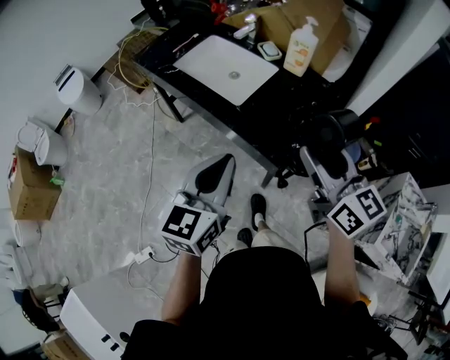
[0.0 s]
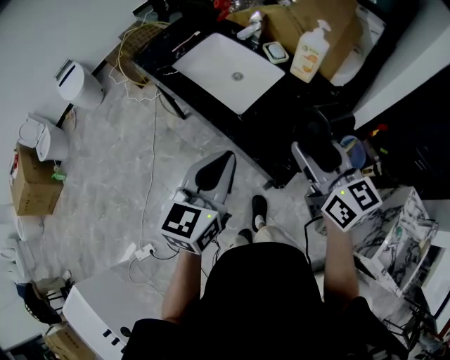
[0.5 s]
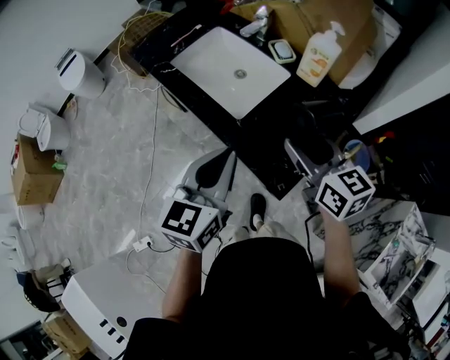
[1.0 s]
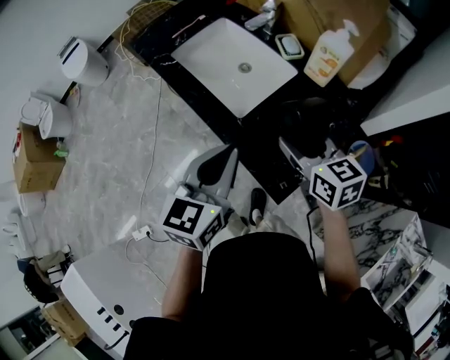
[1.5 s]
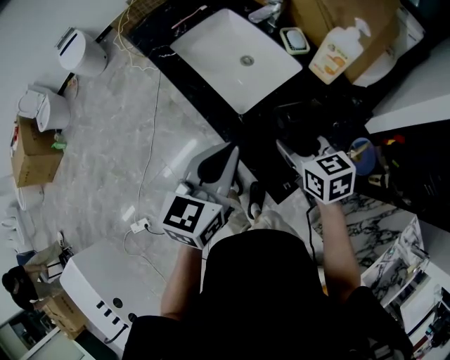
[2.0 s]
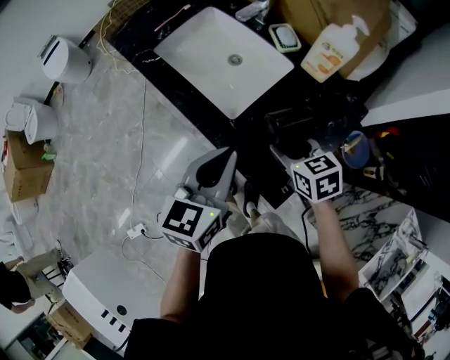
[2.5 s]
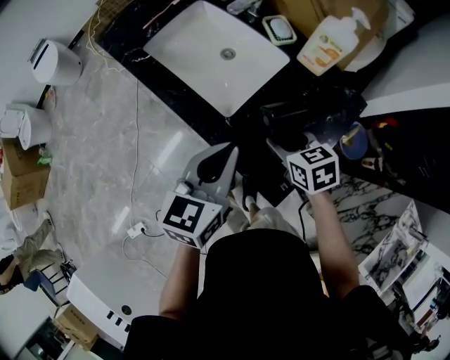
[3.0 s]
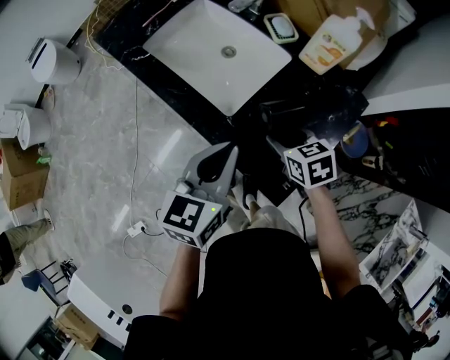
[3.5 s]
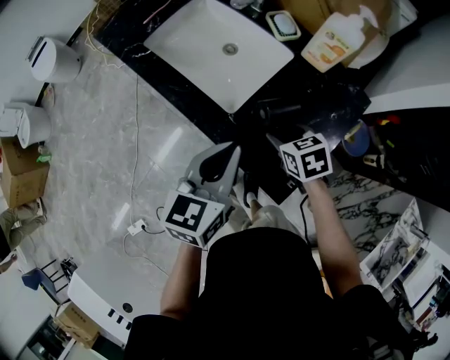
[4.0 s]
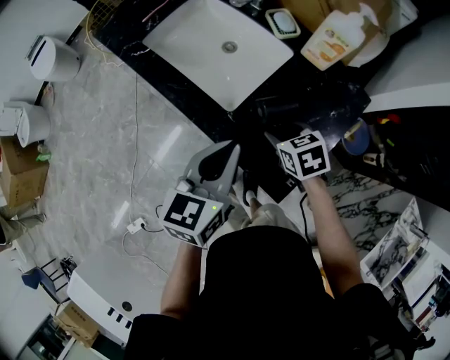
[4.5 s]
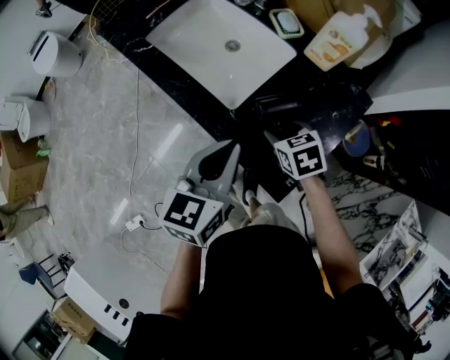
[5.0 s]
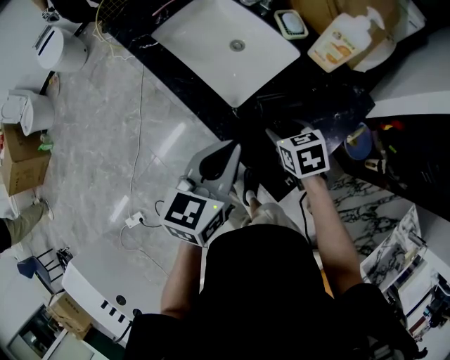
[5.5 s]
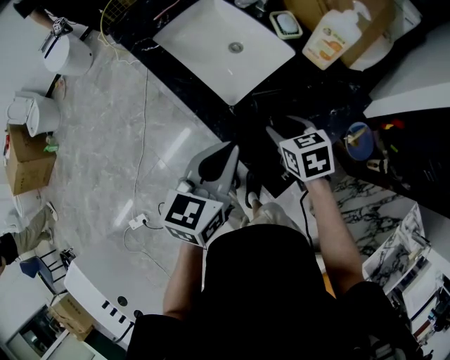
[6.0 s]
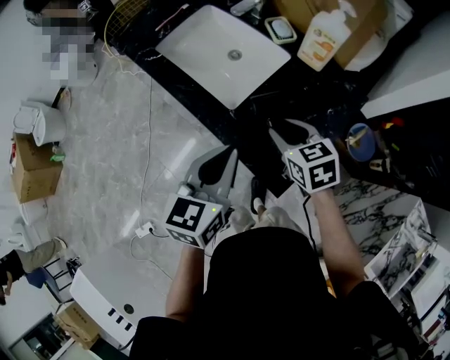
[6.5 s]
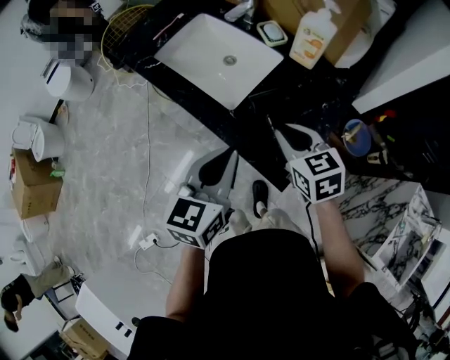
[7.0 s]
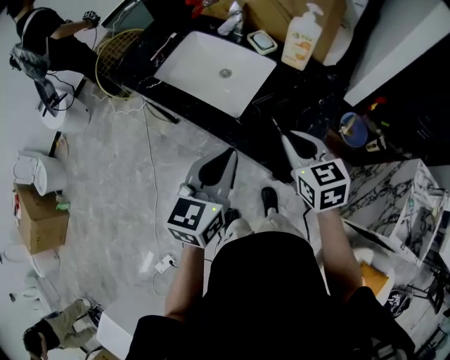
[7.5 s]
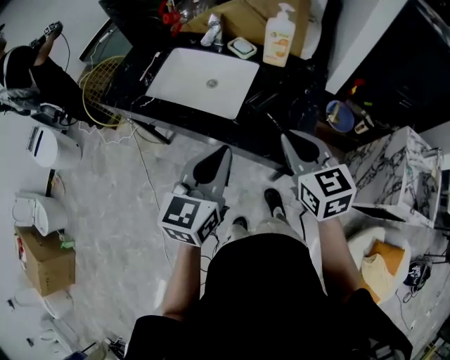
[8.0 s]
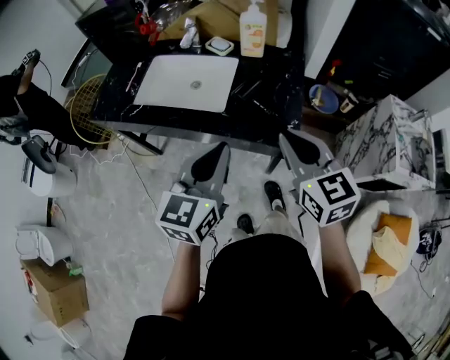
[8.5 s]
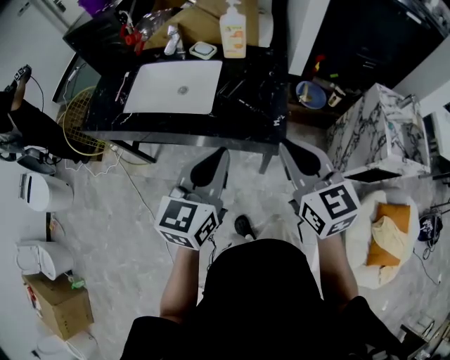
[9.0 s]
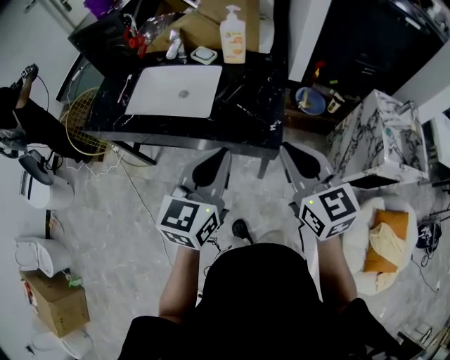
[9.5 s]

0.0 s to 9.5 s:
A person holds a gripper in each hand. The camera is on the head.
0.0 to 2.0 s: The left gripper shifts roughly 20 cm forward, while the right gripper is displaced forward and downward by roughly 30 cm, and tilts its fingers some 30 degrees downward.
2.0 to 4.0 s: The right gripper shifts roughly 10 cm downward. The left gripper is displaced downward by some 5 cm.
4.0 to 5.5 s: Both grippers stay about where they are.
5.5 to 7.5 s: The right gripper goes about 20 cm upward and backward, swivels approximately 30 degrees, and closes its fingers, while the left gripper travels upward and backward by approximately 10 cm.
7.5 to 9.5 s: The left gripper travels backward and upward by some 10 cm, and changes its angle by about 20 degrees; the right gripper is displaced backward and upward by roughly 20 cm, and swivels approximately 30 degrees.

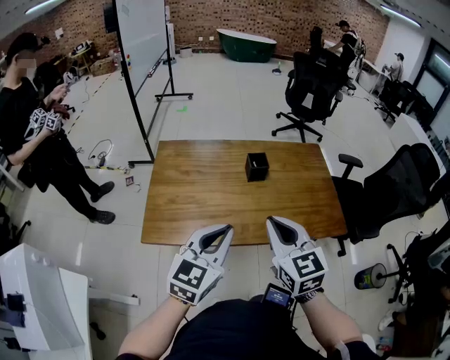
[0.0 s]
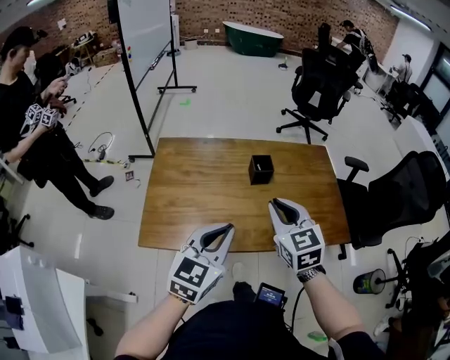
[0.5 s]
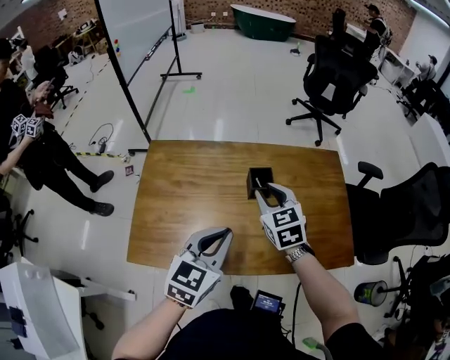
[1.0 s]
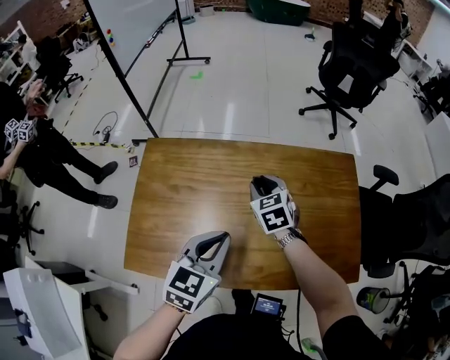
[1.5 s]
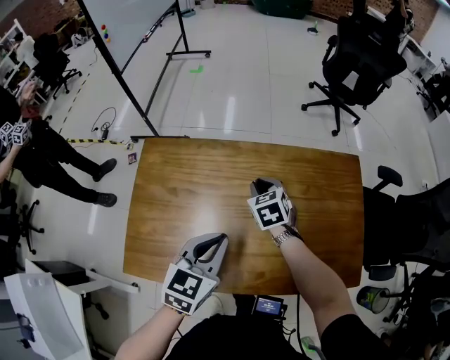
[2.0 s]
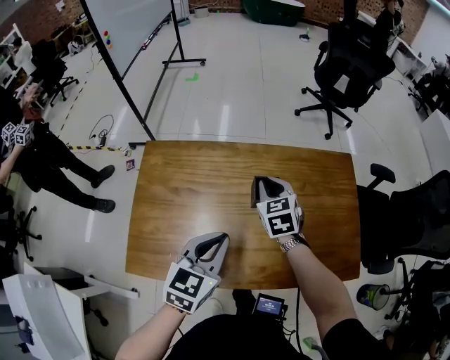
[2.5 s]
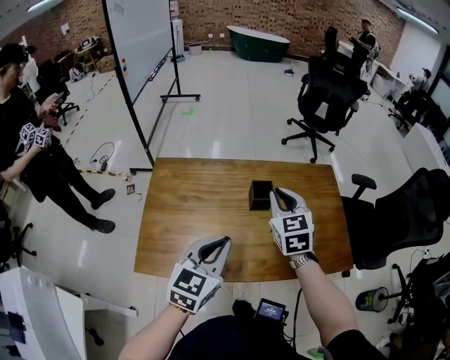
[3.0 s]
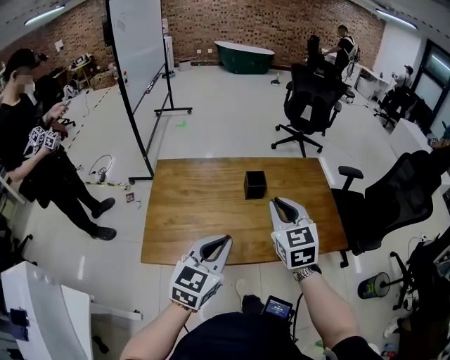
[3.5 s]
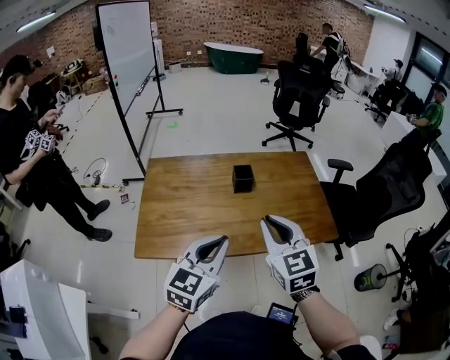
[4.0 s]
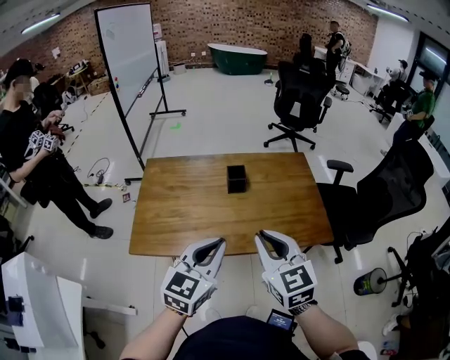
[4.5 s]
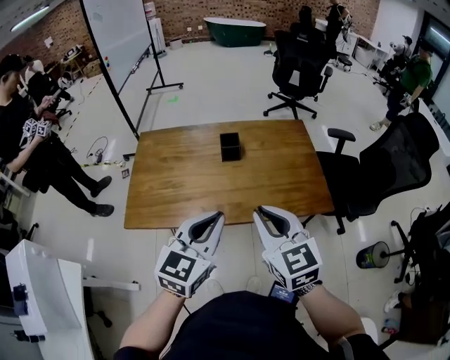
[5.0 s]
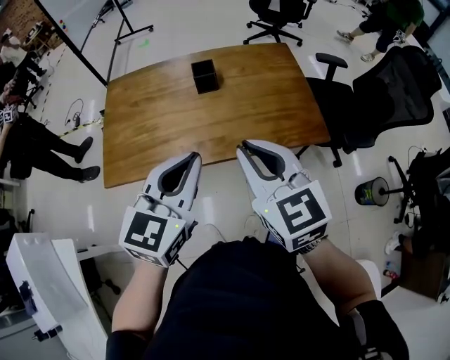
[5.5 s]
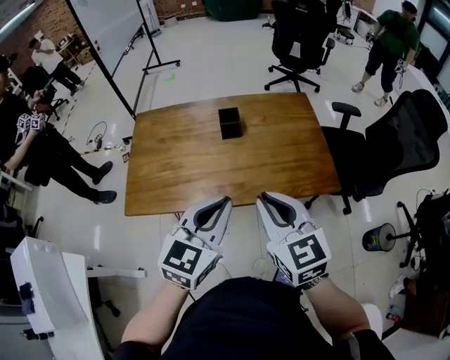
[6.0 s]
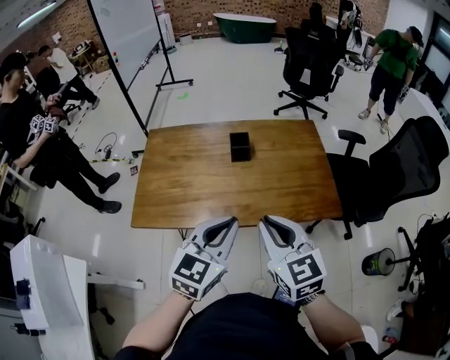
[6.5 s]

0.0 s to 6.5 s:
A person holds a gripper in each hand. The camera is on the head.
0.0 to 2.0 s: The left gripper is displaced forward and downward by about 30 cm, and turns by some 20 degrees. Meanwhile the right gripper goes approximately 50 cm forward and downward, and tips its fingers downward by roughly 30 degrees.
2.0 to 4.5 s: The right gripper travels backward and upward by some 50 cm, and angles its fingers upward, by approximately 30 degrees, while the left gripper travels backward and upward by approximately 30 cm, and swivels roughly 20 degrees.
4.5 to 6.5 s: The left gripper is displaced to the right by approximately 5 cm.

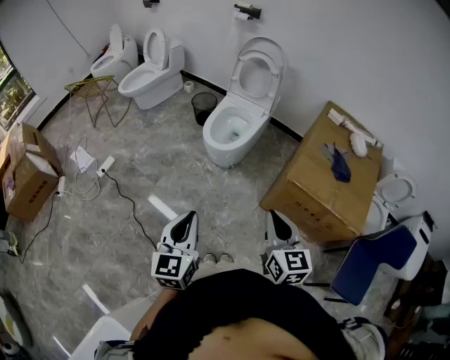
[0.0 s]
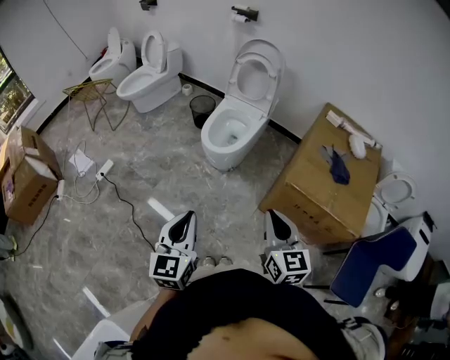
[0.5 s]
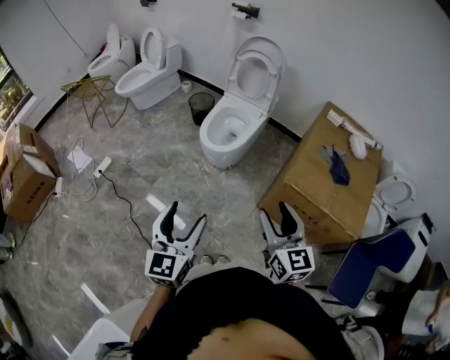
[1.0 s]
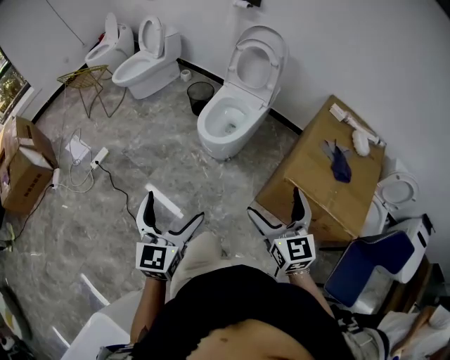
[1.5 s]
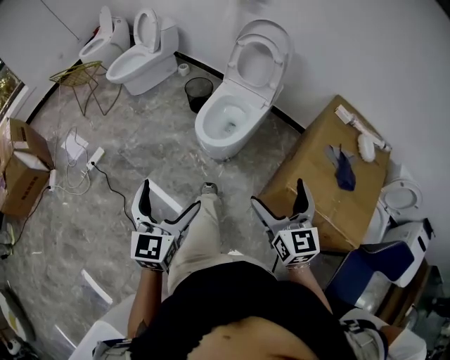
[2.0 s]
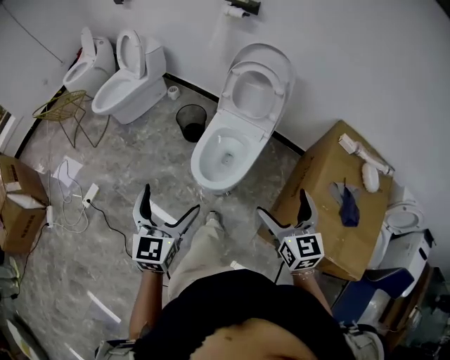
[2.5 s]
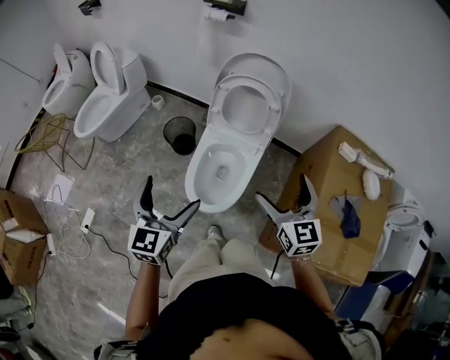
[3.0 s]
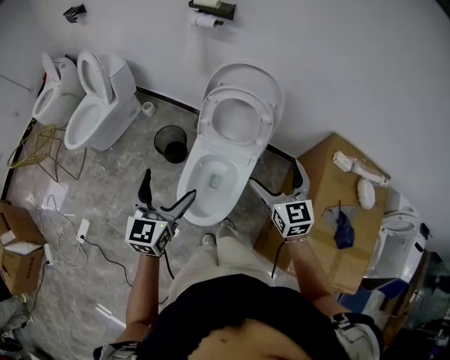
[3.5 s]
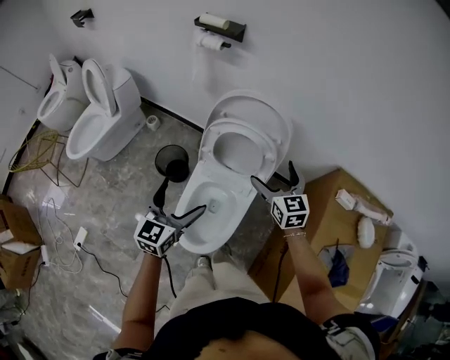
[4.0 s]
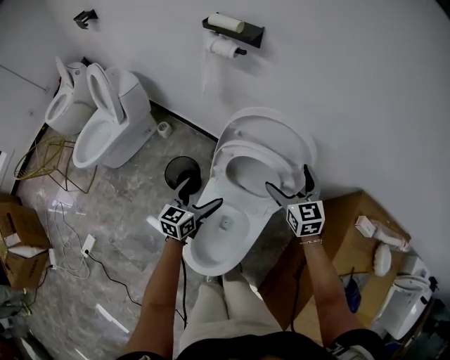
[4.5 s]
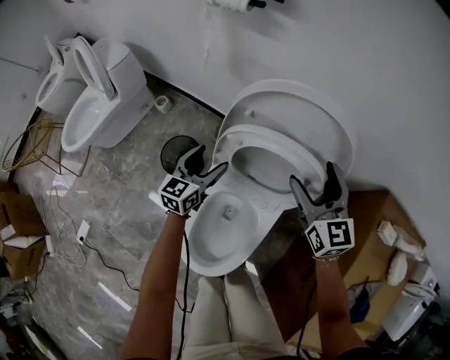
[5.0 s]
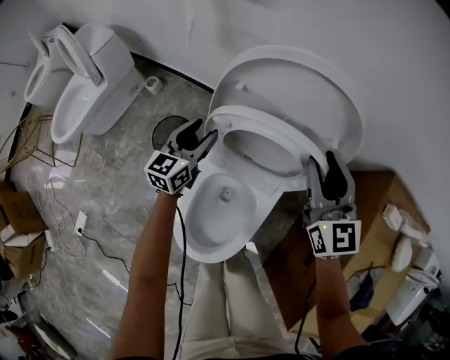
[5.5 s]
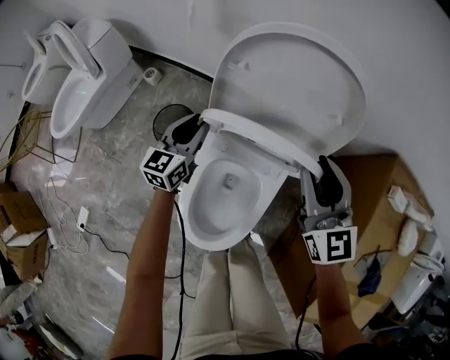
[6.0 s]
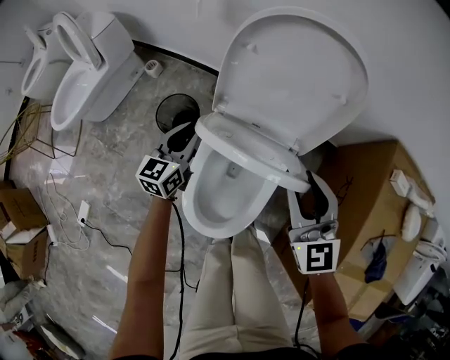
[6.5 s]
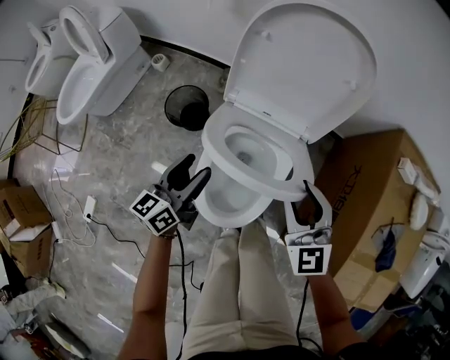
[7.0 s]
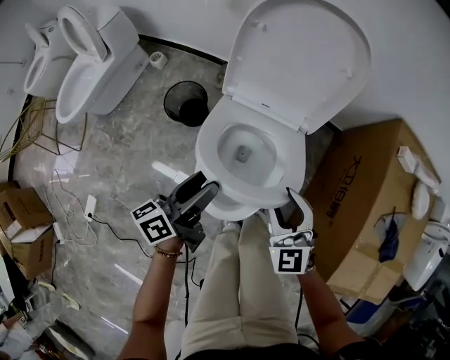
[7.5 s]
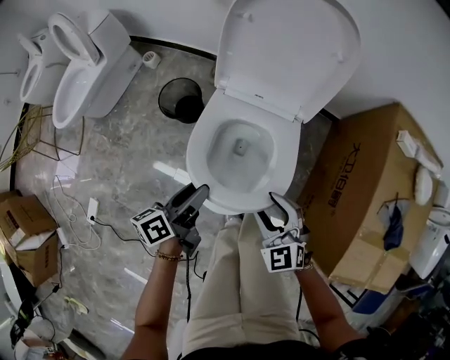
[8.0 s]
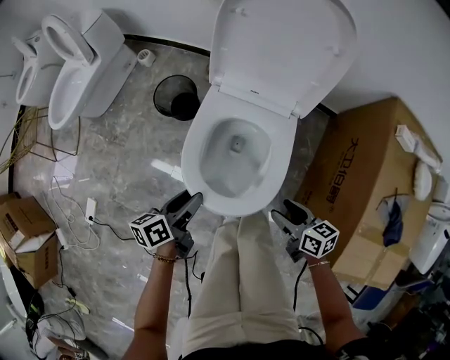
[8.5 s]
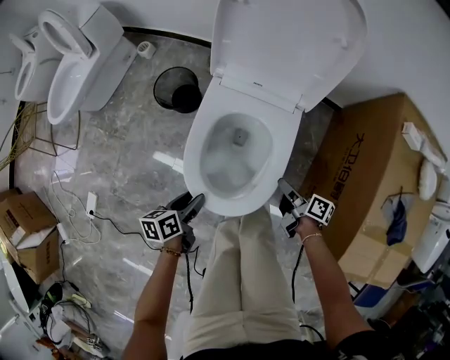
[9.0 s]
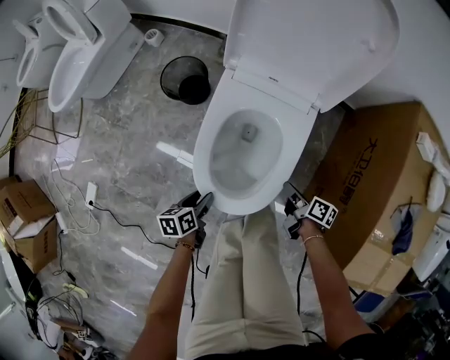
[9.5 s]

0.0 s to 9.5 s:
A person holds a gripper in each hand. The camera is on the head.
0.0 to 2.0 s: The grippers both shift forward by about 15 cm. The left gripper opens. The right gripper opens up.
2.0 to 4.0 s: The two grippers travel together, forward, roughly 70 cm. The left gripper turns by roughly 20 degrees.
4.0 to 5.5 s: The right gripper heads forward and downward, covering about 15 cm, and closes its fingers. The left gripper is displaced forward and downward by about 35 cm, and closes its fingers.
5.5 to 7.5 s: Both grippers travel together backward, about 30 cm. The left gripper rolls counterclockwise, seen from behind, by roughly 40 degrees. Meanwhile the right gripper swivels approximately 30 degrees.
7.5 to 9.5 s: The left gripper is displaced downward and backward by approximately 30 cm, and points its fingers about 40 degrees further downward. Meanwhile the right gripper heads downward, covering roughly 25 cm, and twists approximately 100 degrees clockwise, seen from behind.

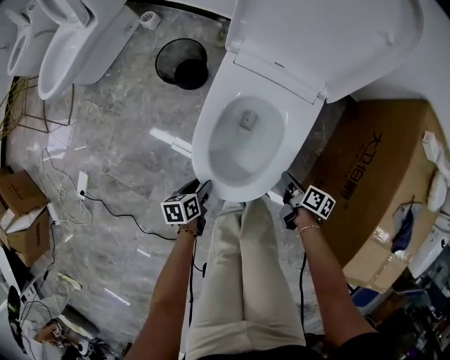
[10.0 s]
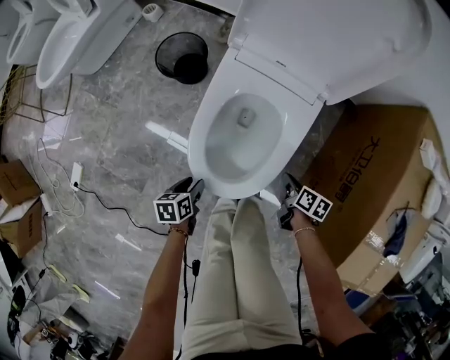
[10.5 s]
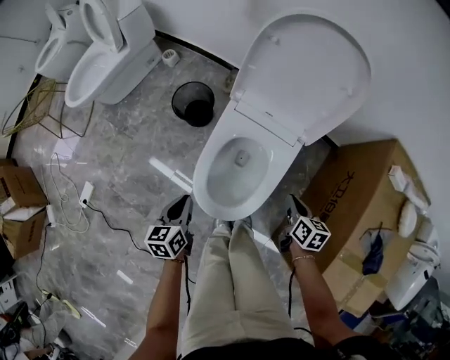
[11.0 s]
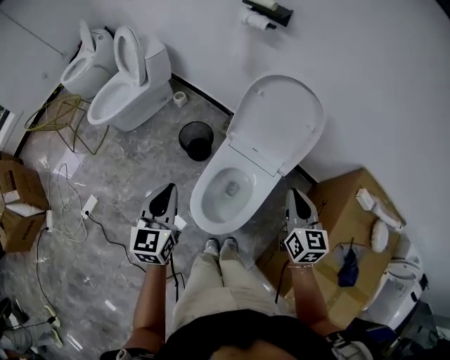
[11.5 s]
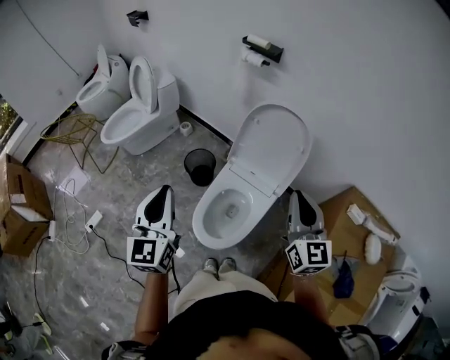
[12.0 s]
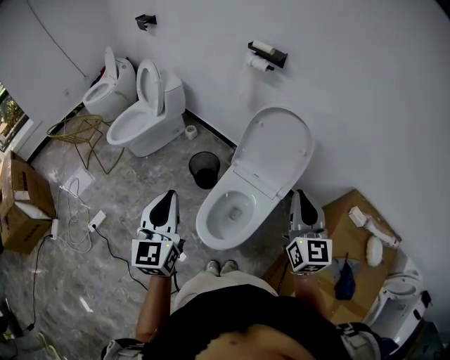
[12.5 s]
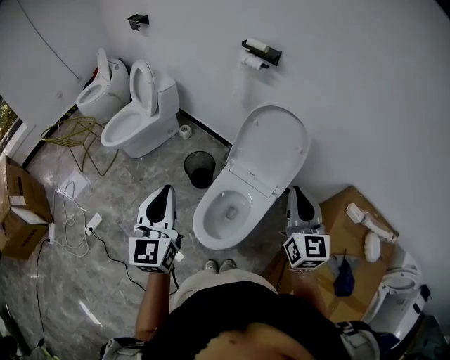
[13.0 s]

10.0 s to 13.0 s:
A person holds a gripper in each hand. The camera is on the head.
10.0 to 11.5 s: Both grippers travel together upward, approximately 50 cm. The left gripper tilts its fingers about 40 degrees upward, while the right gripper rolls counterclockwise, seen from behind, by approximately 60 degrees.
11.5 to 13.0 s: The left gripper is displaced upward and backward by approximately 15 cm. Meanwhile the right gripper goes approximately 15 cm upward.
